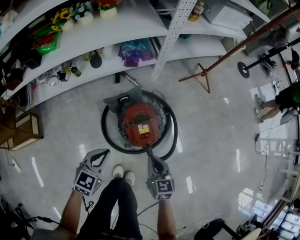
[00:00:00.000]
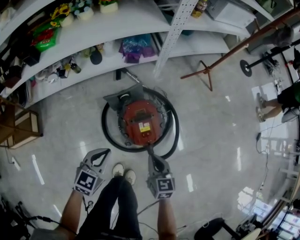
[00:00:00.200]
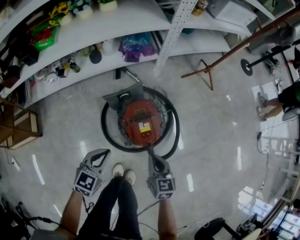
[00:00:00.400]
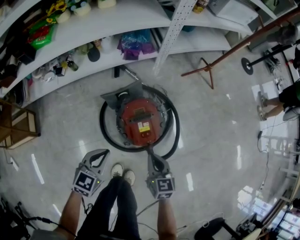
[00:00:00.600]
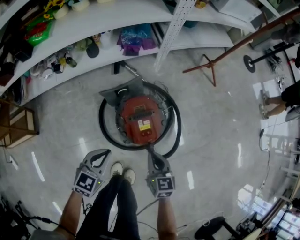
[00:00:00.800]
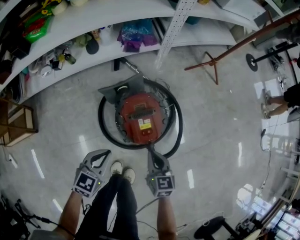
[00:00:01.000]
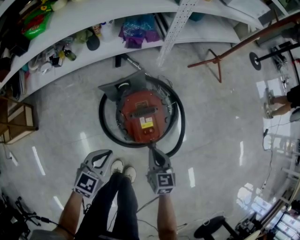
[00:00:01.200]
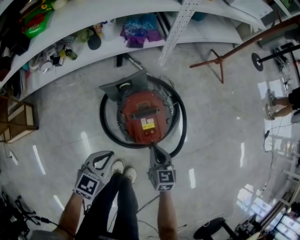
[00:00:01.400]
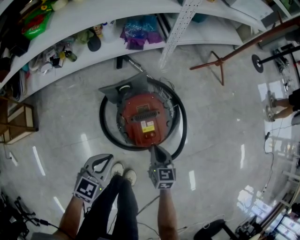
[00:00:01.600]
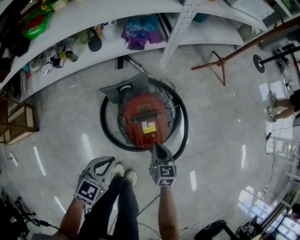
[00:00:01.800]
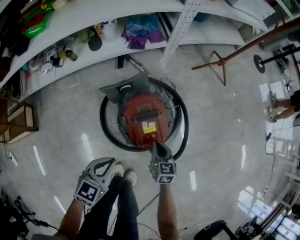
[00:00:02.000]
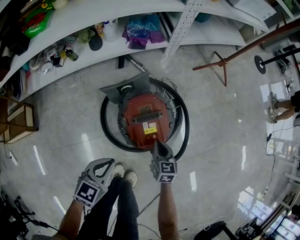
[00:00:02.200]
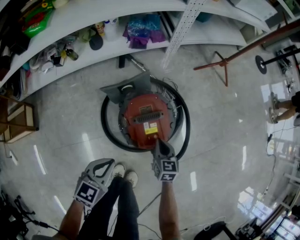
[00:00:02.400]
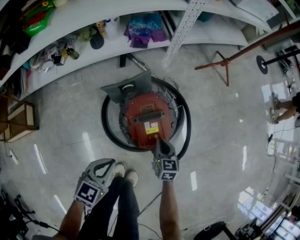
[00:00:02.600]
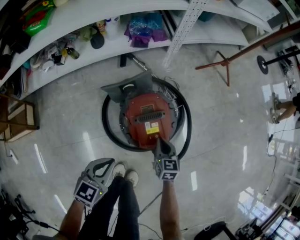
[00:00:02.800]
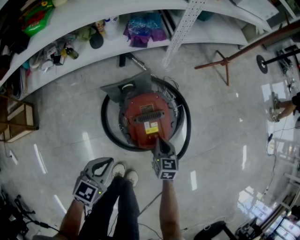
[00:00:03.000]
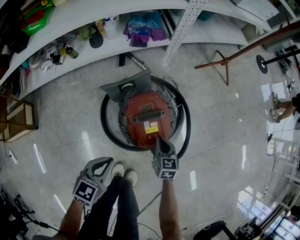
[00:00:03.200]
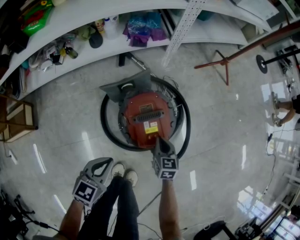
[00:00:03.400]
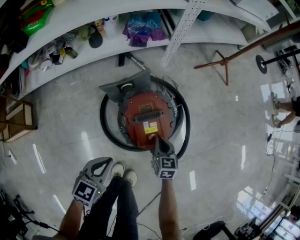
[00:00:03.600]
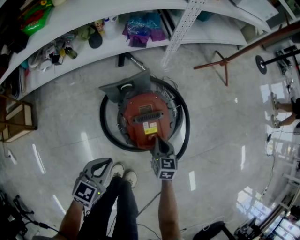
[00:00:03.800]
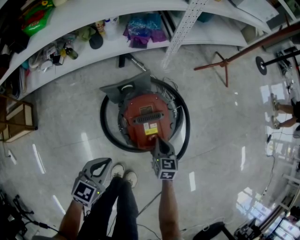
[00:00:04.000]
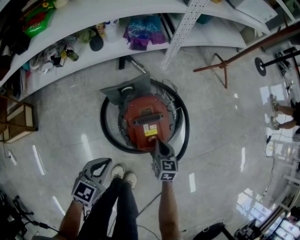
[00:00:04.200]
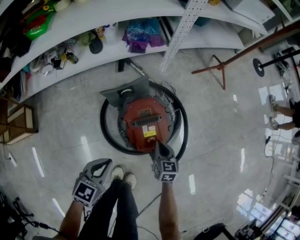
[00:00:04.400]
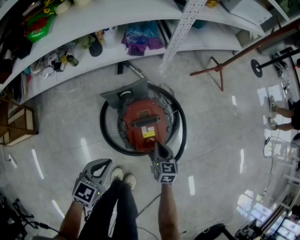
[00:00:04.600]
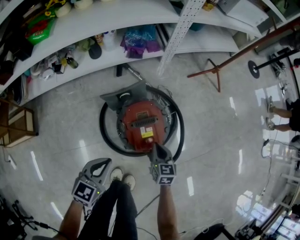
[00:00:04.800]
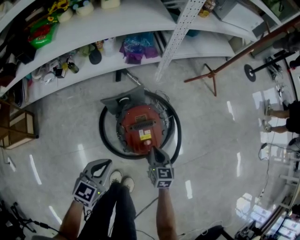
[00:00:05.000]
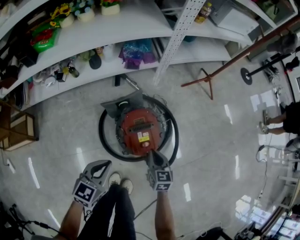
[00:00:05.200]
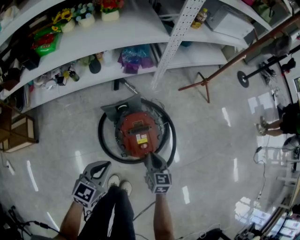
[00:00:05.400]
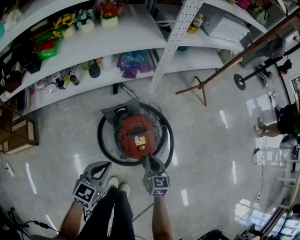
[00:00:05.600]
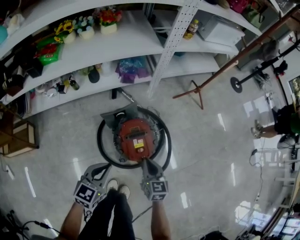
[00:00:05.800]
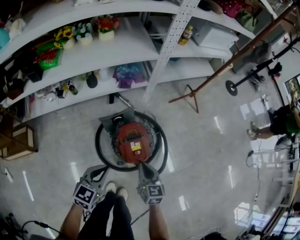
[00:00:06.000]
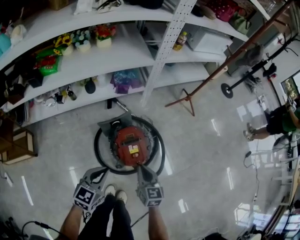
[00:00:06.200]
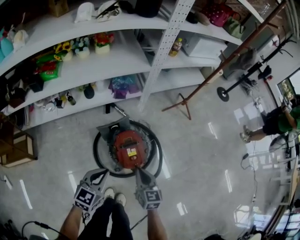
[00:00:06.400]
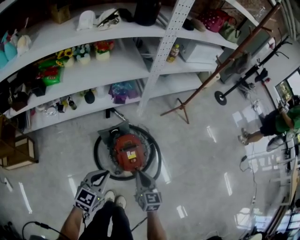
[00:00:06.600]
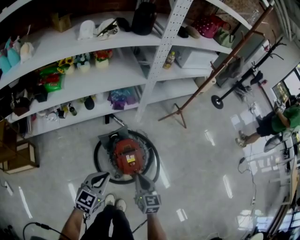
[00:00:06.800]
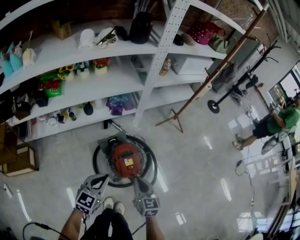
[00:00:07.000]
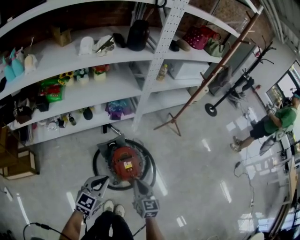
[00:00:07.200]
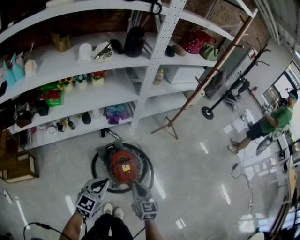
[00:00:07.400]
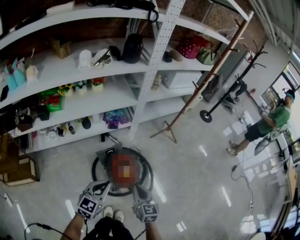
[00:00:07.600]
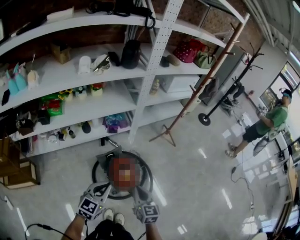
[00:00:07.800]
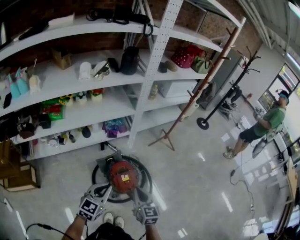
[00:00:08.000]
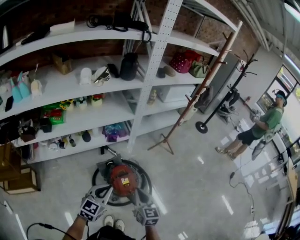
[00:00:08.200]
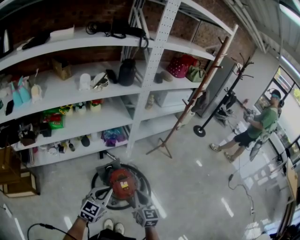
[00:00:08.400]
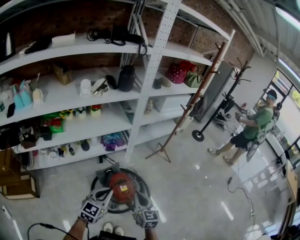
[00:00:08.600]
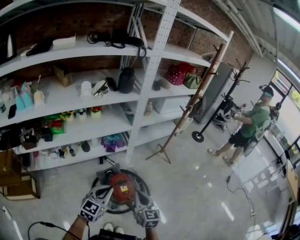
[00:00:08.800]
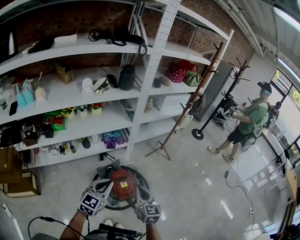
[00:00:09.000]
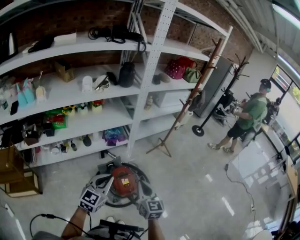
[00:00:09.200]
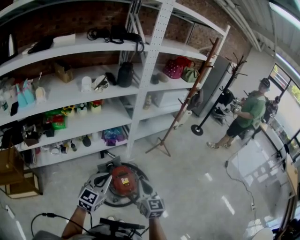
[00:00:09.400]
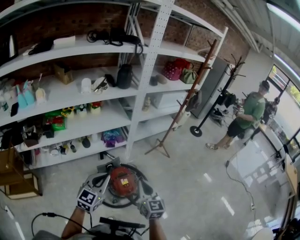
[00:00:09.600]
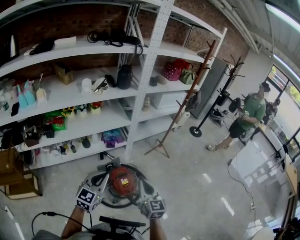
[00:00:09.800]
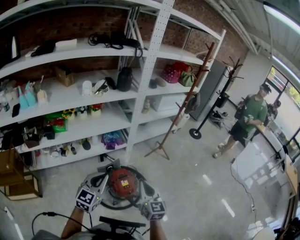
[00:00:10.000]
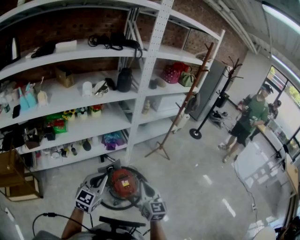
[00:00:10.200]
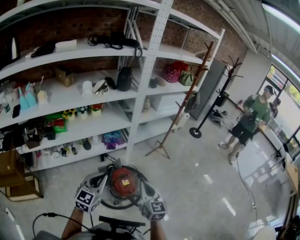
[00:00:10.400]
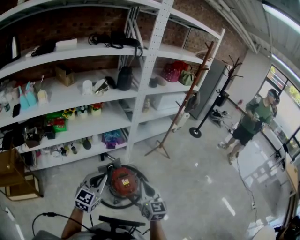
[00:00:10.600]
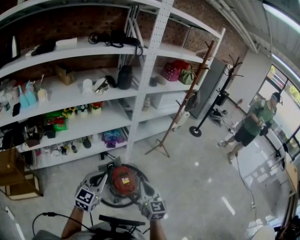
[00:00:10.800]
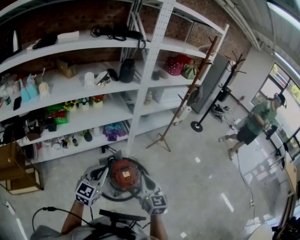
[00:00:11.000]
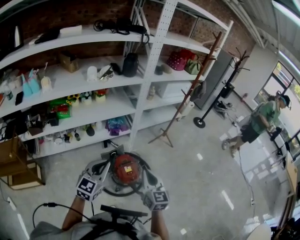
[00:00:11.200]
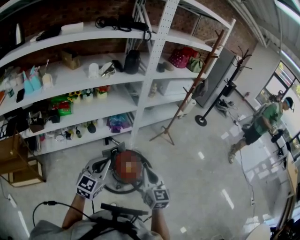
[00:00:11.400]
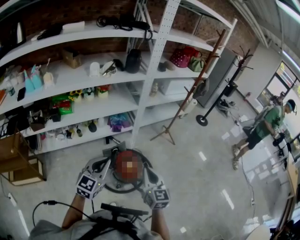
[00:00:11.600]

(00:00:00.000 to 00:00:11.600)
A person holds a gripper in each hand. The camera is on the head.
00:00:00.000 - 00:00:01.400: Both grippers travel together downward, approximately 15 cm.
00:00:01.400 - 00:00:02.800: The right gripper heads downward and forward, covering approximately 10 cm.
00:00:02.800 - 00:00:04.400: The two grippers keep their place.
00:00:04.400 - 00:00:05.800: The grippers both shift upward by roughly 15 cm.
00:00:05.800 - 00:00:07.200: The grippers both shift upward by about 20 cm.
00:00:07.200 - 00:00:08.800: Both grippers travel together upward, approximately 15 cm.
00:00:08.800 - 00:00:10.200: Both grippers move upward, roughly 5 cm.
00:00:10.200 - 00:00:11.600: There are only small adjustments of the grippers.

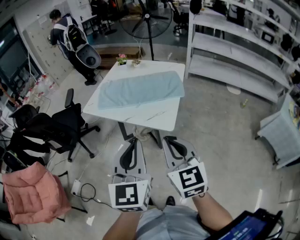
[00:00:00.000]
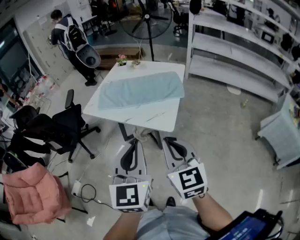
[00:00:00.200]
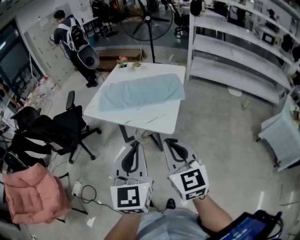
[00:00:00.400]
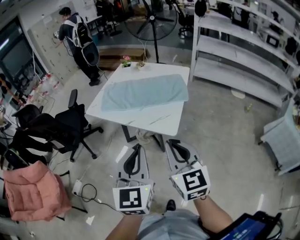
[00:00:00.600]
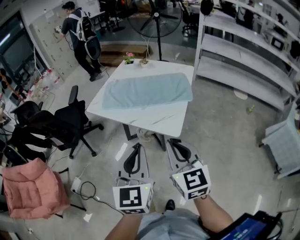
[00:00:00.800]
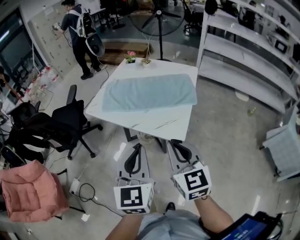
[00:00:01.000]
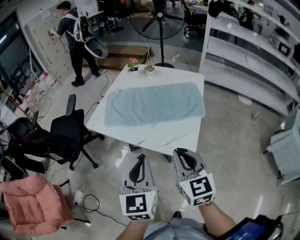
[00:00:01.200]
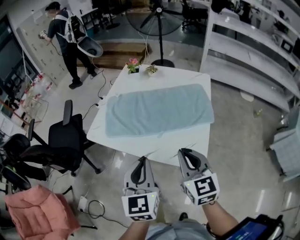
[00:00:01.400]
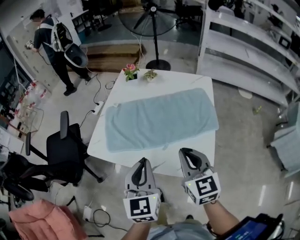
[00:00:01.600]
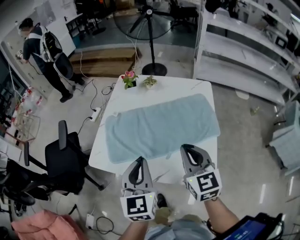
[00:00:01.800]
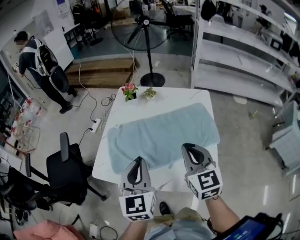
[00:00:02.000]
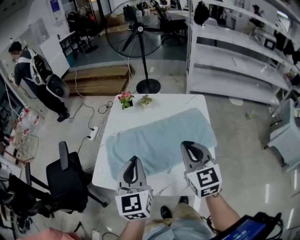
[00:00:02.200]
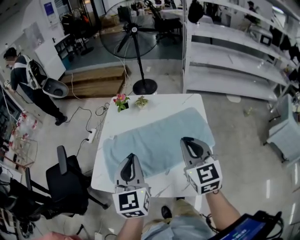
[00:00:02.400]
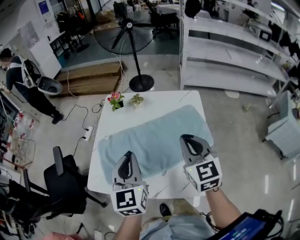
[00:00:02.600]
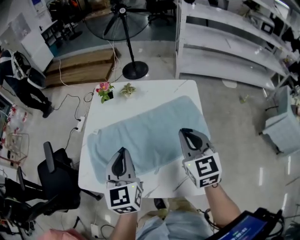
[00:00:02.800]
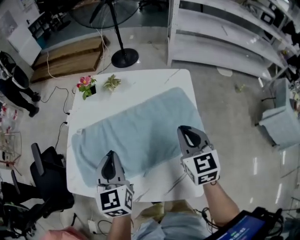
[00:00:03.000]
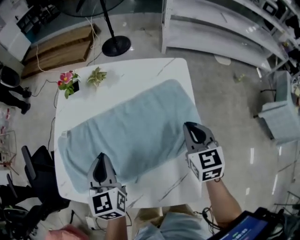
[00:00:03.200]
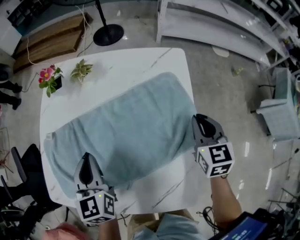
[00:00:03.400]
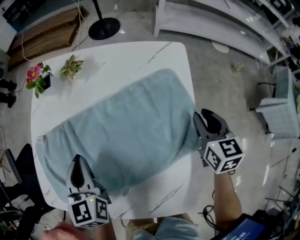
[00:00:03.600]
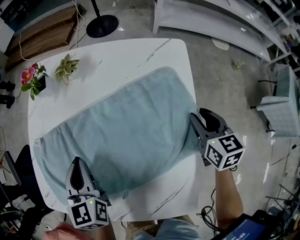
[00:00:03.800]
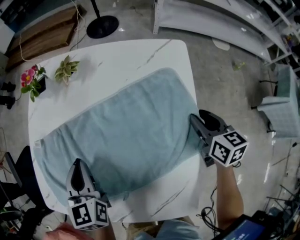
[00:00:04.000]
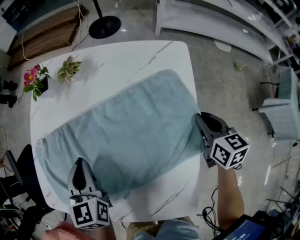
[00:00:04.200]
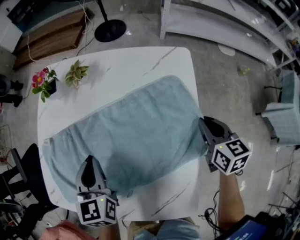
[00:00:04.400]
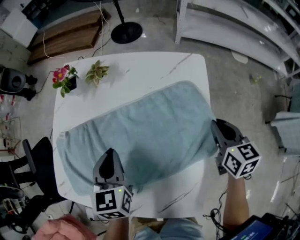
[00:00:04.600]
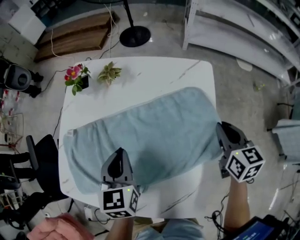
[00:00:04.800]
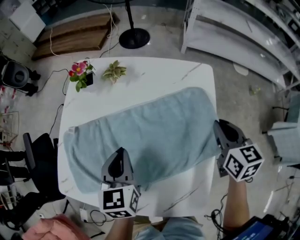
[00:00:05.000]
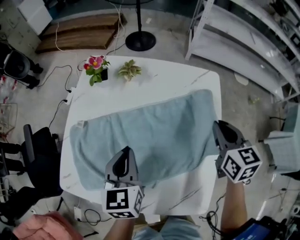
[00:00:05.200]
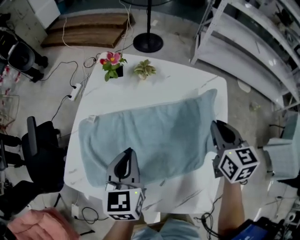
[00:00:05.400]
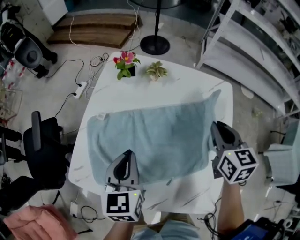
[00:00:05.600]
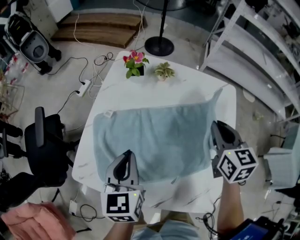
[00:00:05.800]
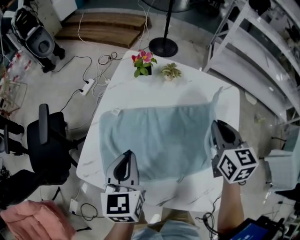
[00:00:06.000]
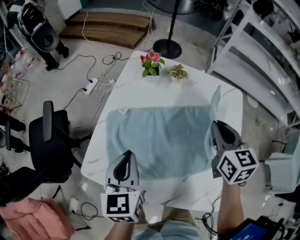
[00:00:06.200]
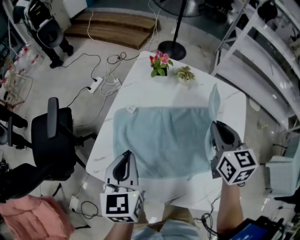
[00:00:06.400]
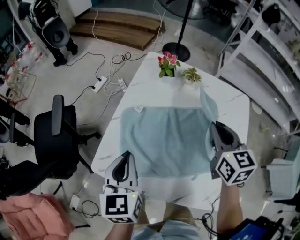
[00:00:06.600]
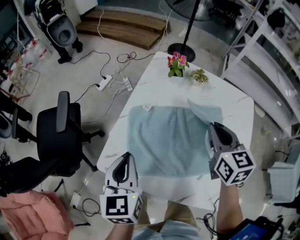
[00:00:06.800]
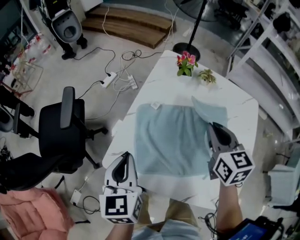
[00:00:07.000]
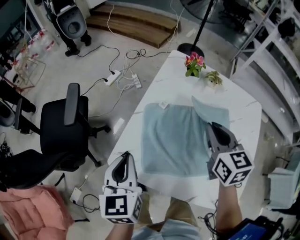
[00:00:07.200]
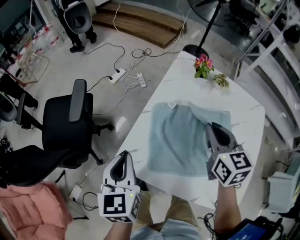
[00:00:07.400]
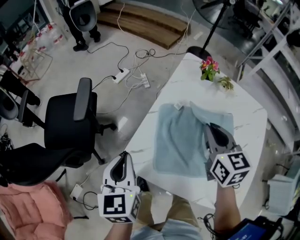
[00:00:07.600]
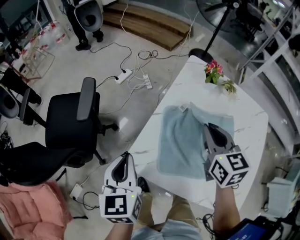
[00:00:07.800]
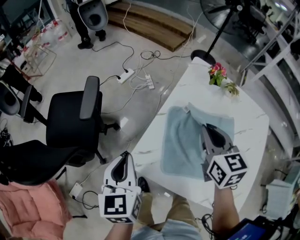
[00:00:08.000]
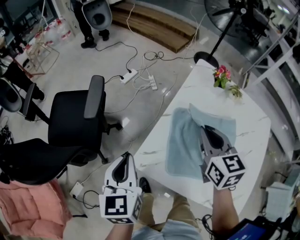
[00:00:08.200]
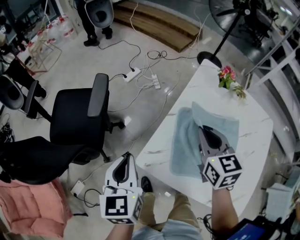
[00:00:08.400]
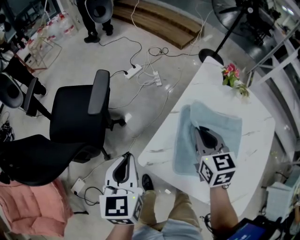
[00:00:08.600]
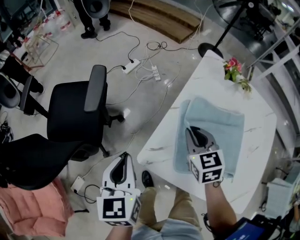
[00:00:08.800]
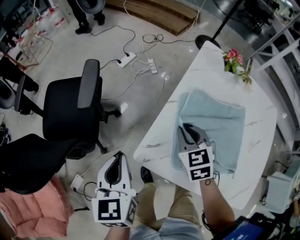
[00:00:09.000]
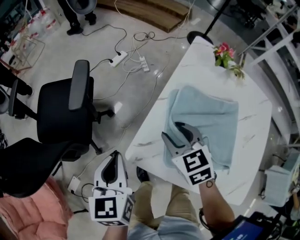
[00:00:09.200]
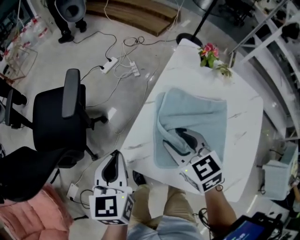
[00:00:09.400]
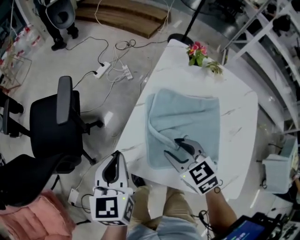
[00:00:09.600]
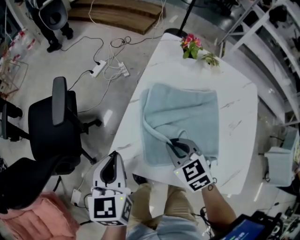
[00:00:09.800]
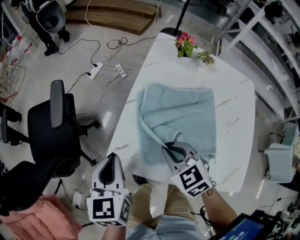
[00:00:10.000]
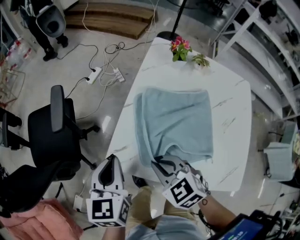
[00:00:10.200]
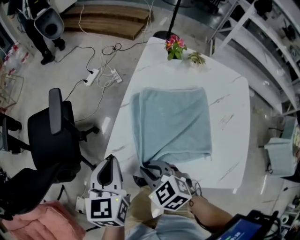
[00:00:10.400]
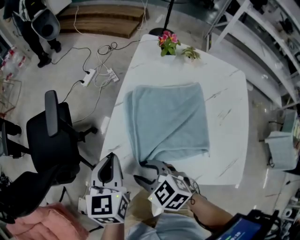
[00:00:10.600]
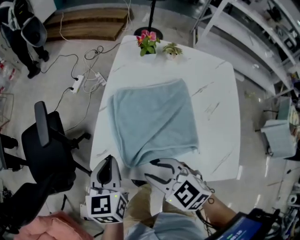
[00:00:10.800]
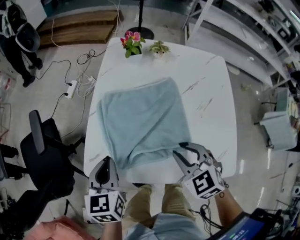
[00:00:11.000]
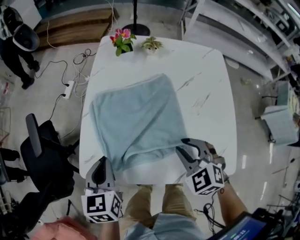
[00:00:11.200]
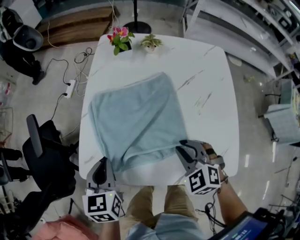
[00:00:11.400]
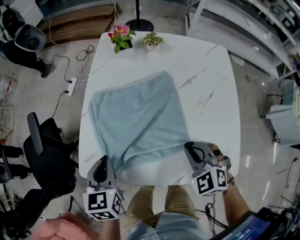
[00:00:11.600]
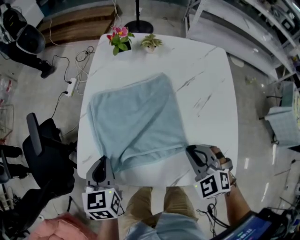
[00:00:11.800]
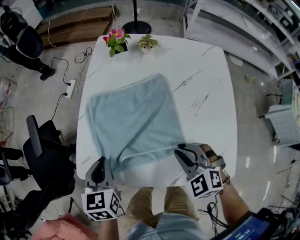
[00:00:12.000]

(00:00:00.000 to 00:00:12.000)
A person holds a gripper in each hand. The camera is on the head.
00:00:00.000 - 00:00:01.600: Both grippers move forward, some 30 cm.
00:00:01.600 - 00:00:03.000: The right gripper travels forward and to the right by roughly 20 cm; the left gripper goes roughly 20 cm forward.
00:00:03.000 - 00:00:04.400: The left gripper heads downward and forward, covering some 10 cm. The right gripper travels to the right and downward by approximately 20 cm, turns by some 20 degrees, and opens, then closes once more.
00:00:04.400 - 00:00:06.000: The right gripper heads to the left and upward, covering some 30 cm. The left gripper shifts roughly 15 cm to the left and backward.
00:00:06.000 - 00:00:07.600: Both grippers move to the left, approximately 25 cm.
00:00:07.600 - 00:00:09.000: The right gripper shifts about 20 cm downward and to the left, and rotates approximately 20 degrees. Meanwhile the left gripper heads to the left, covering some 10 cm.
00:00:09.000 - 00:00:10.400: The right gripper is displaced backward by roughly 15 cm, swivels roughly 20 degrees, and opens, then closes once more. The left gripper goes roughly 10 cm to the right.
00:00:10.400 - 00:00:12.000: The left gripper moves some 10 cm, while the right gripper shifts by about 25 cm, changes its angle by approximately 20 degrees, and opens and closes again.
